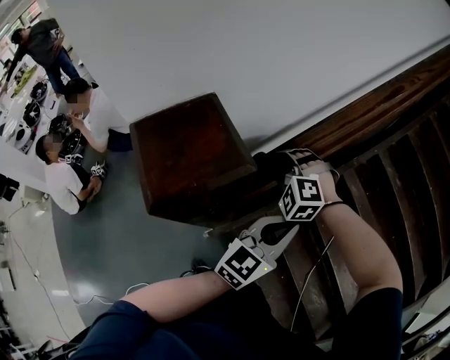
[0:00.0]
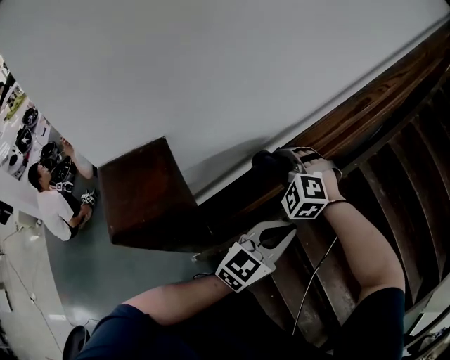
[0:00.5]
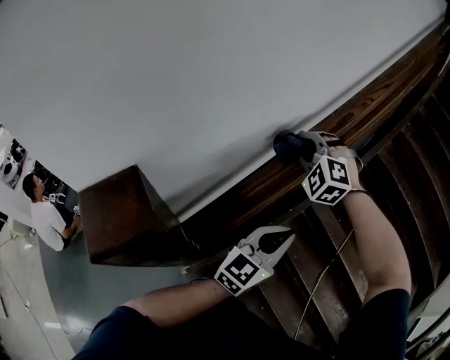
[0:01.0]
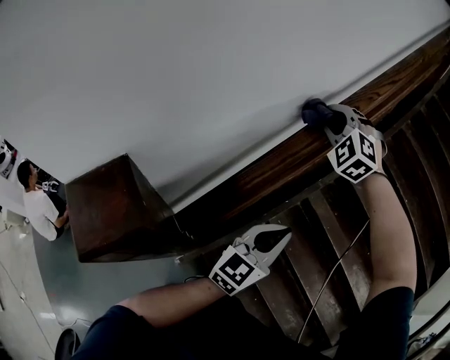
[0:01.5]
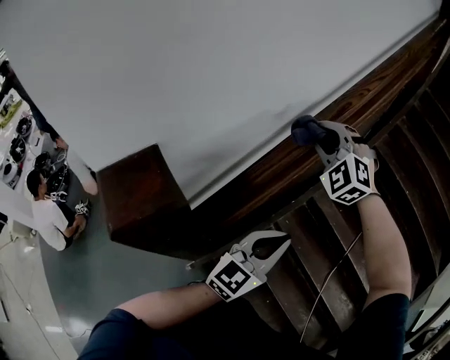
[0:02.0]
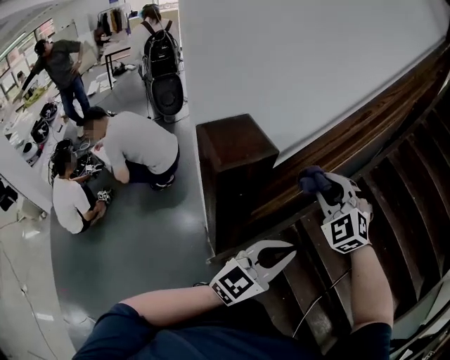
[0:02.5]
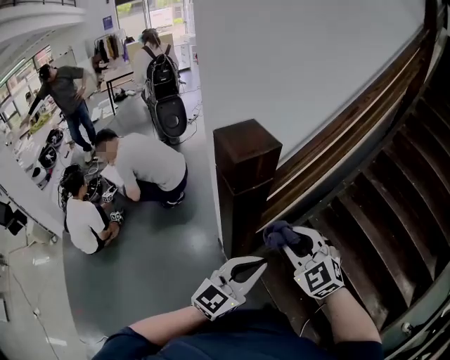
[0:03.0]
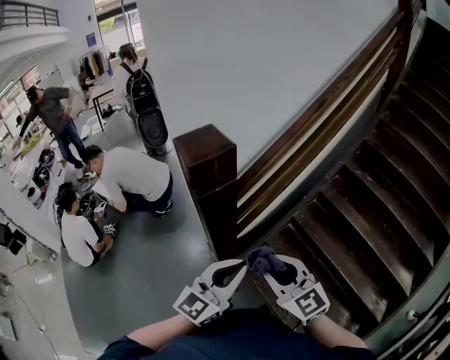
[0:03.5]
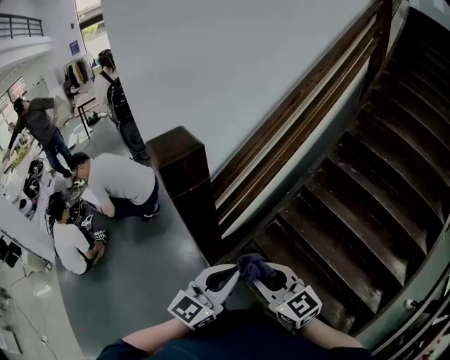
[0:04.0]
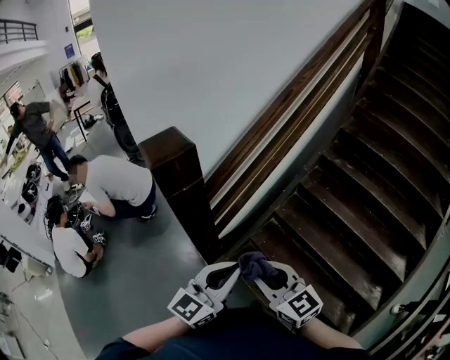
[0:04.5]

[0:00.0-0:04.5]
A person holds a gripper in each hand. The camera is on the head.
0:00.0 to 0:02.0: The right gripper shifts about 30 cm upward, to the right and forward, and turns by roughly 30 degrees. The left gripper shifts roughly 10 cm to the right and upward, and moves about 10 cm forward and comes back.
0:02.0 to 0:04.5: The left gripper is displaced backward by about 35 cm, while the right gripper moves backward, some 60 cm, and rotates around the line of its fingers by roughly 70 degrees, clockwise from behind.

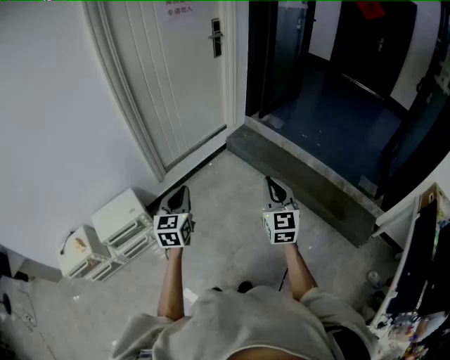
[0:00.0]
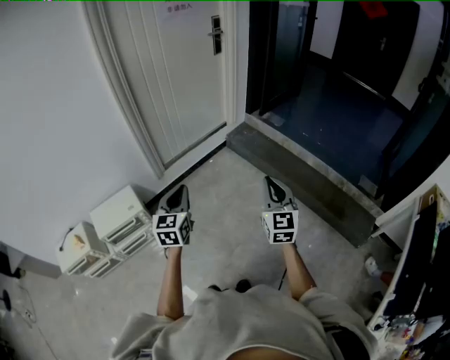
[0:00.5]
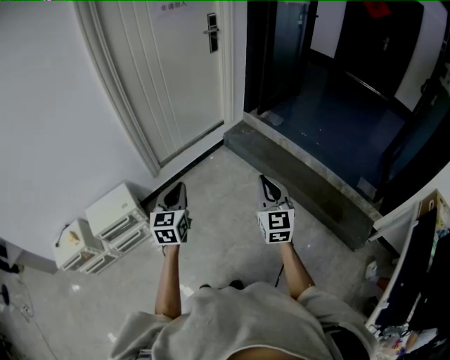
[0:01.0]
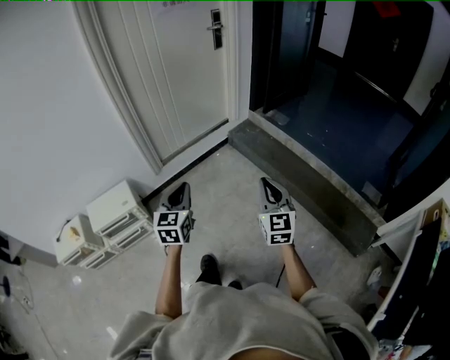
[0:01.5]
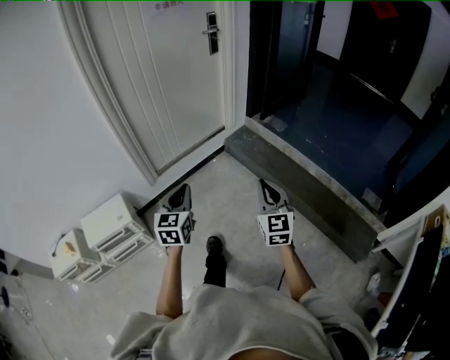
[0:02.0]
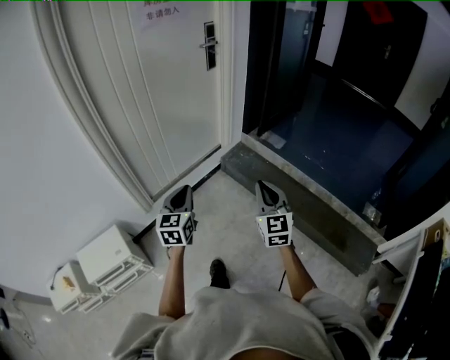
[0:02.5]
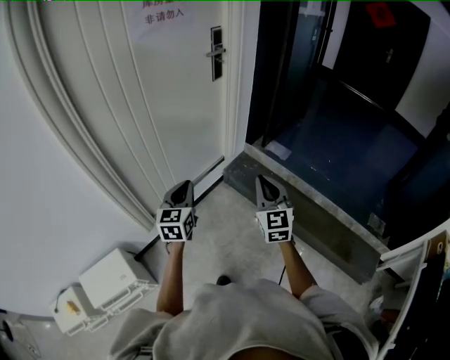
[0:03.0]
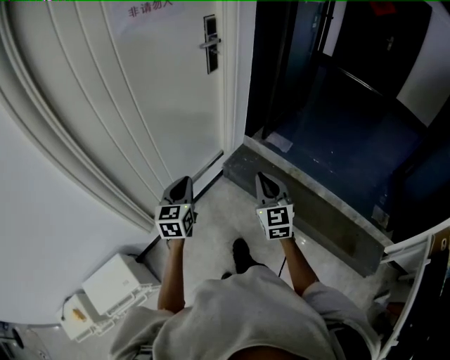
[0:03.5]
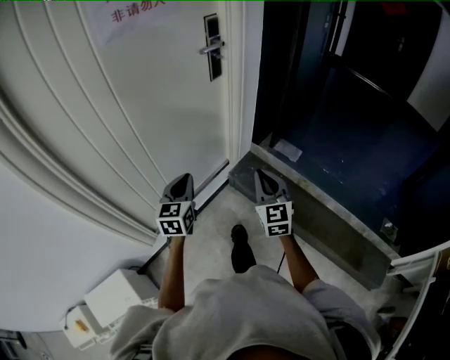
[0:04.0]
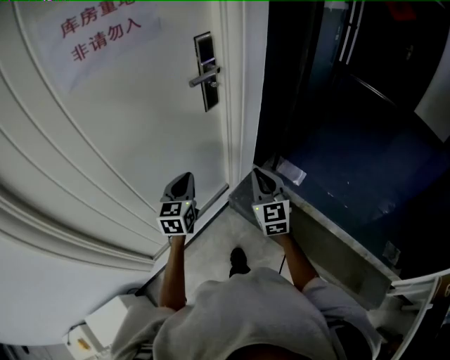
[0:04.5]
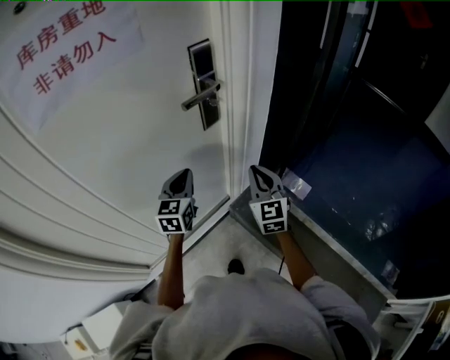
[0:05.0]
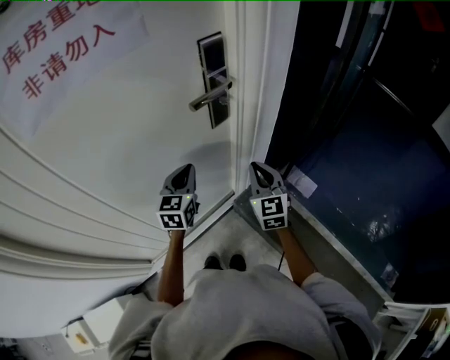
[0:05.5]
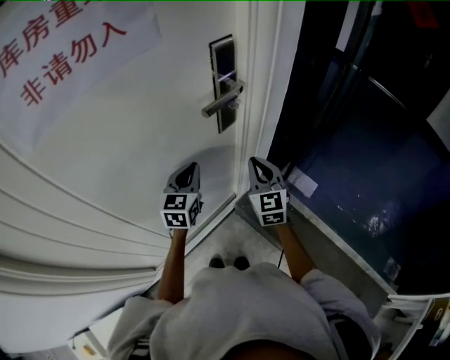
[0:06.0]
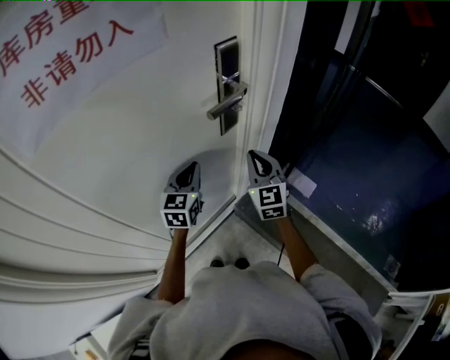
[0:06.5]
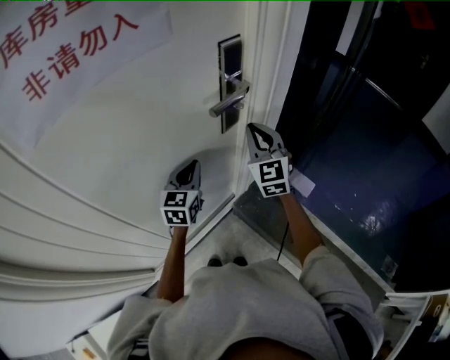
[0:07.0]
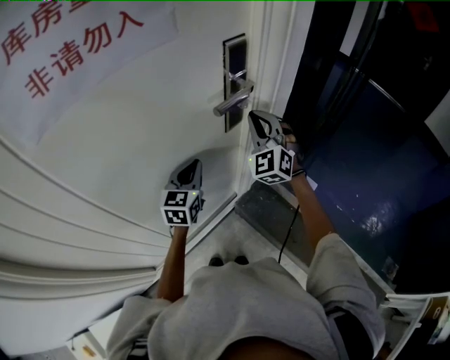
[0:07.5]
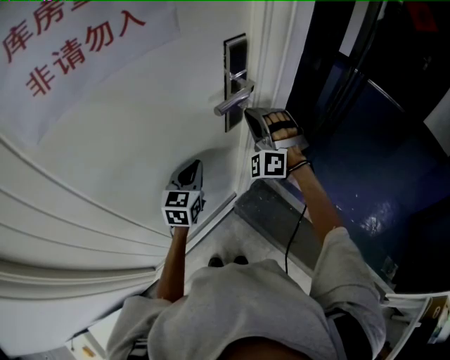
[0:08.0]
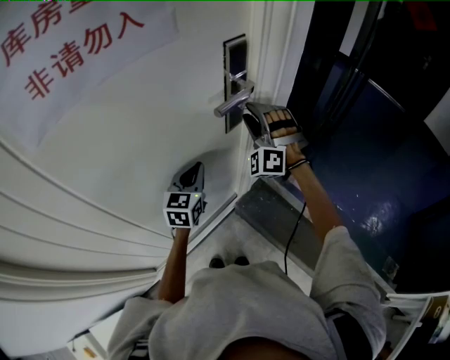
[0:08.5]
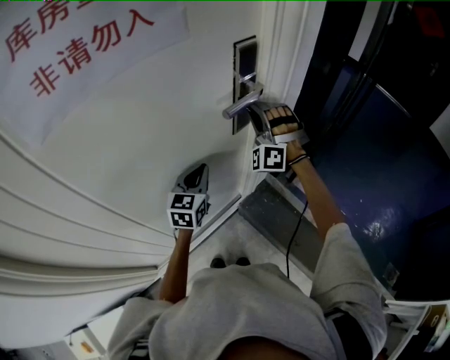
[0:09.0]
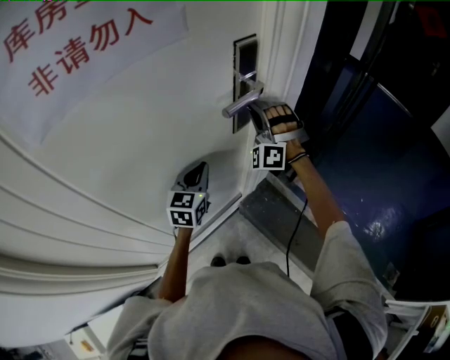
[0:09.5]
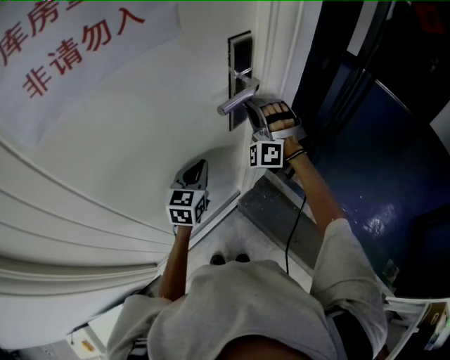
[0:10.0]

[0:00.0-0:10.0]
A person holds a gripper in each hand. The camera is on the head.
0:00.0 to 0:02.0: The grippers both shift forward and to the right by about 15 cm.
0:02.0 to 0:04.0: Both grippers are carried forward, roughly 50 cm.
0:04.0 to 0:06.0: The two grippers go about 35 cm forward.
0:06.0 to 0:08.0: The right gripper moves forward and upward, roughly 15 cm, and rotates around the line of its fingers by roughly 70 degrees, counterclockwise from behind.
0:08.0 to 0:10.0: The right gripper opens, then closes once more.

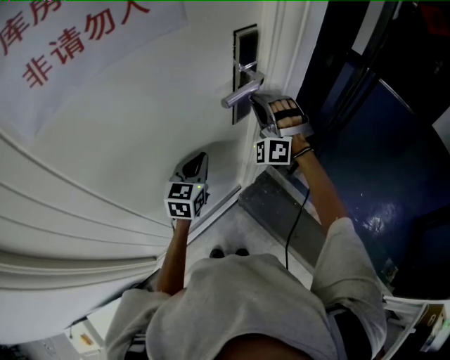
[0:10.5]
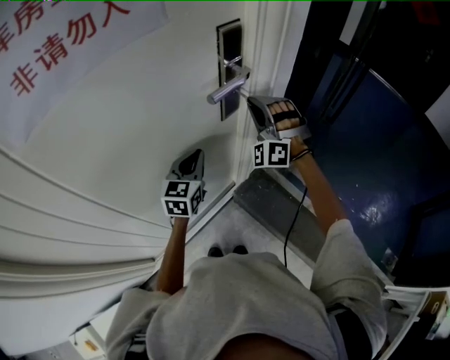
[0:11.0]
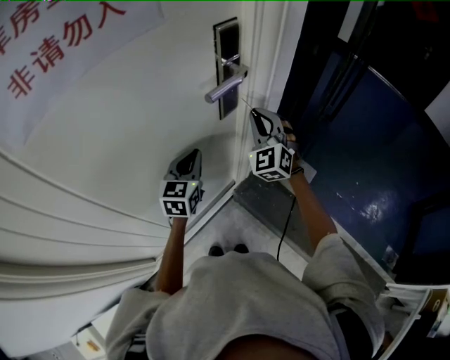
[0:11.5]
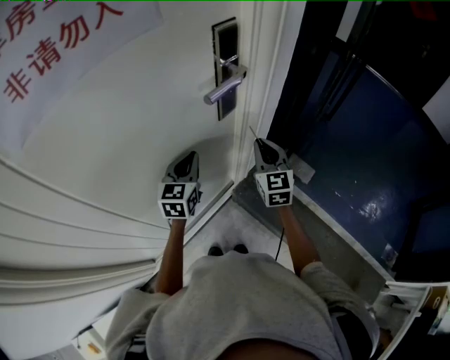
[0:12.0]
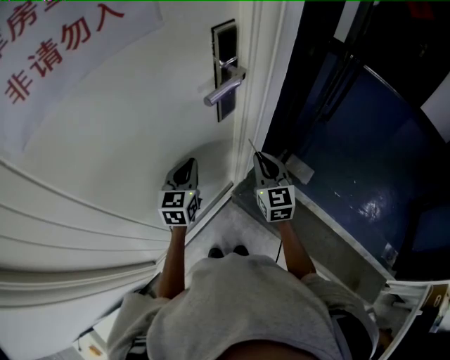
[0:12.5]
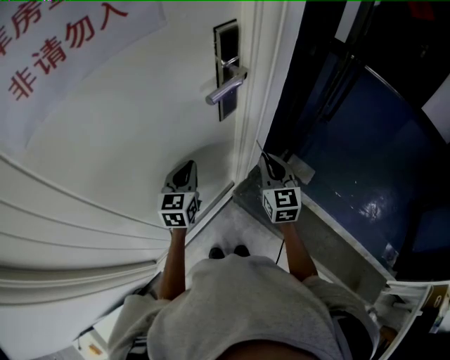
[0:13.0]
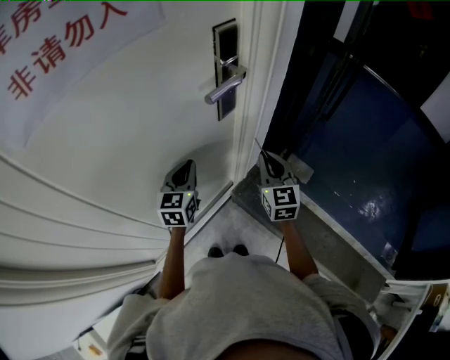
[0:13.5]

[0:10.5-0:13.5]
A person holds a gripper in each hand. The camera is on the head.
0:10.5 to 0:12.0: The right gripper is displaced downward, backward and to the right by some 15 cm, and rolls clockwise, seen from behind, by roughly 80 degrees.
0:12.0 to 0:13.5: The grippers move only a little.

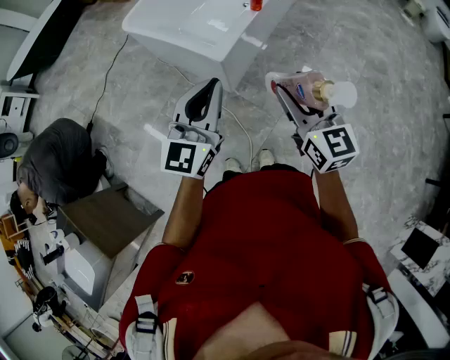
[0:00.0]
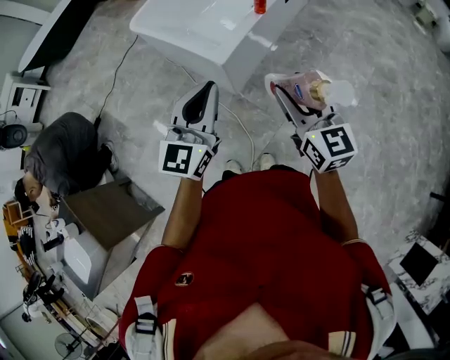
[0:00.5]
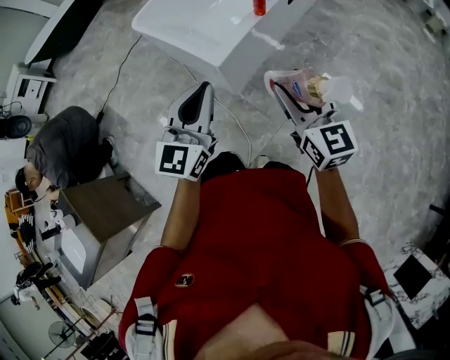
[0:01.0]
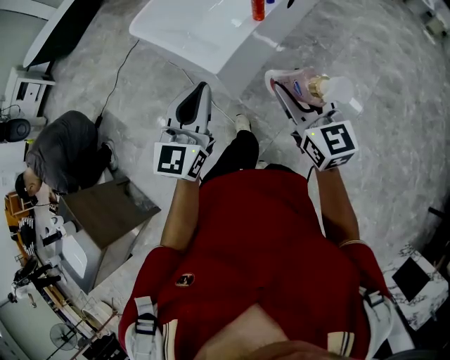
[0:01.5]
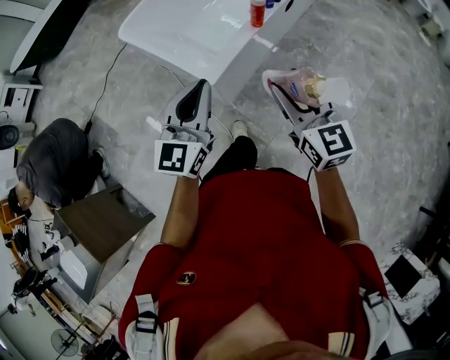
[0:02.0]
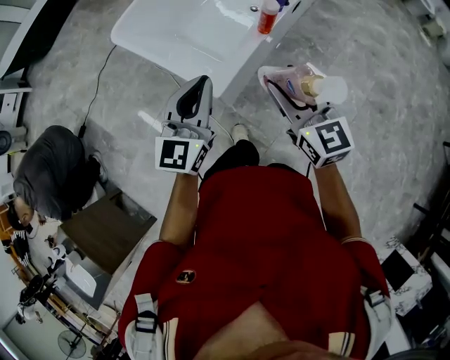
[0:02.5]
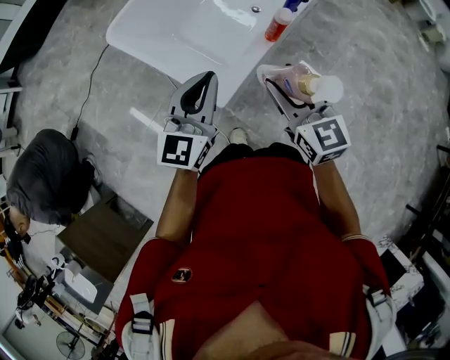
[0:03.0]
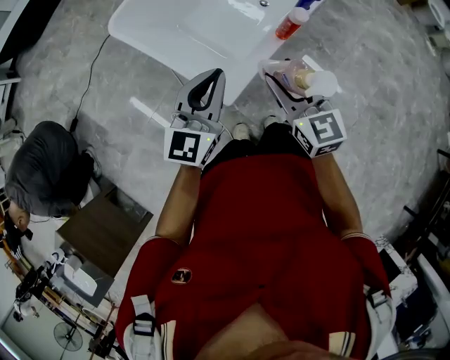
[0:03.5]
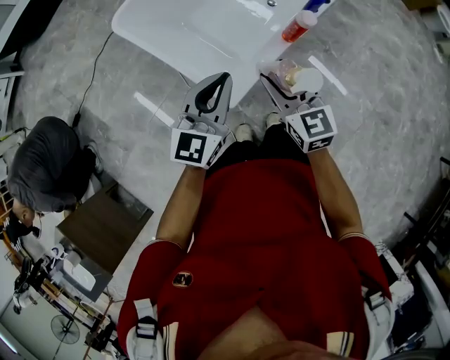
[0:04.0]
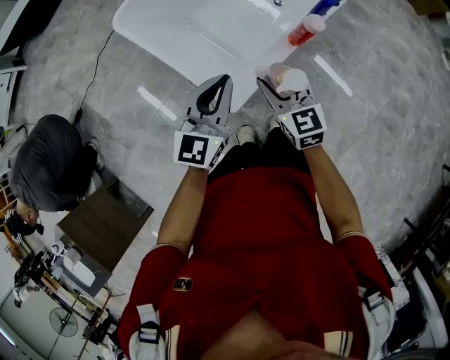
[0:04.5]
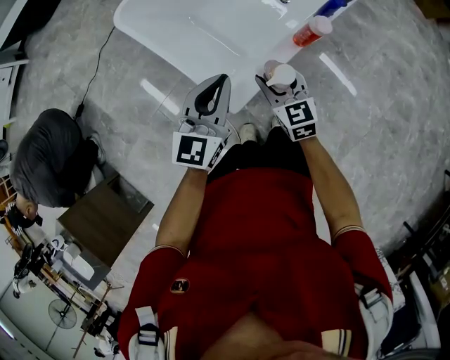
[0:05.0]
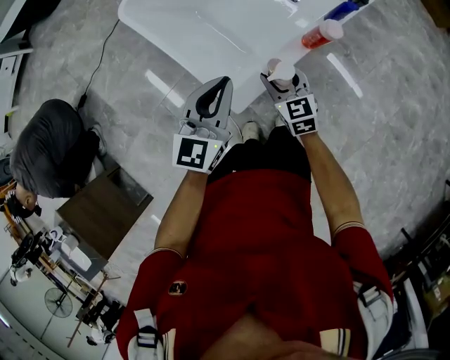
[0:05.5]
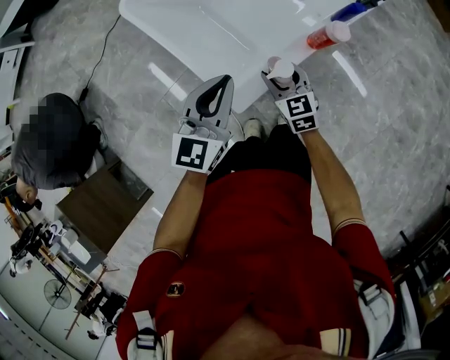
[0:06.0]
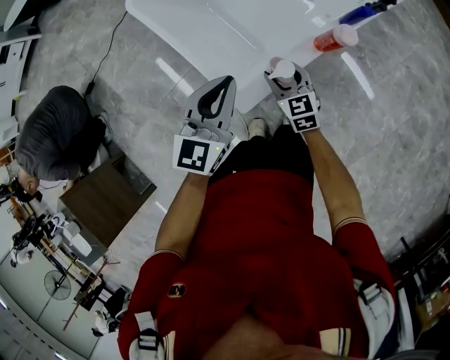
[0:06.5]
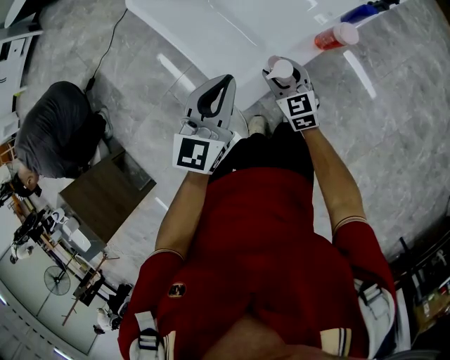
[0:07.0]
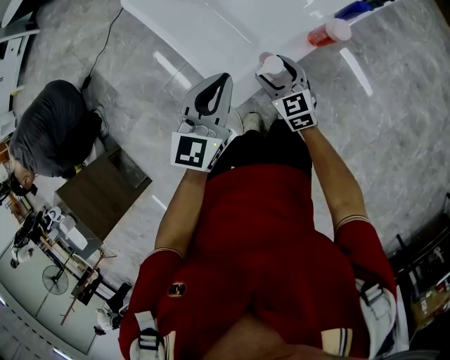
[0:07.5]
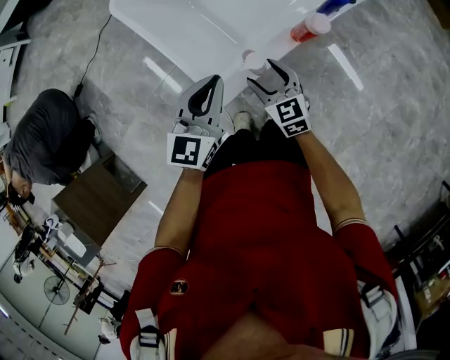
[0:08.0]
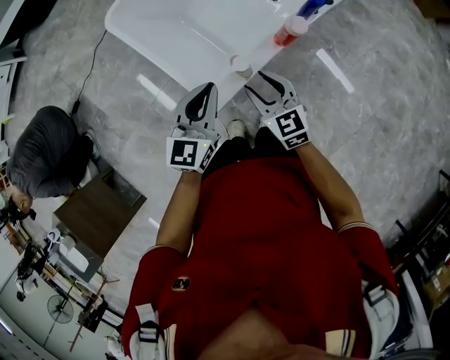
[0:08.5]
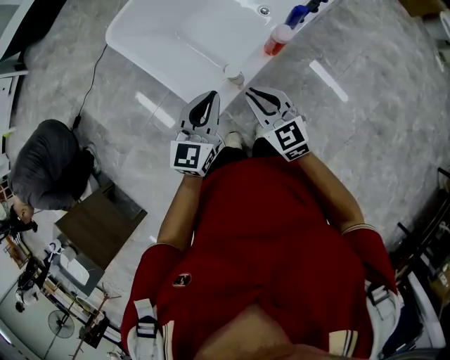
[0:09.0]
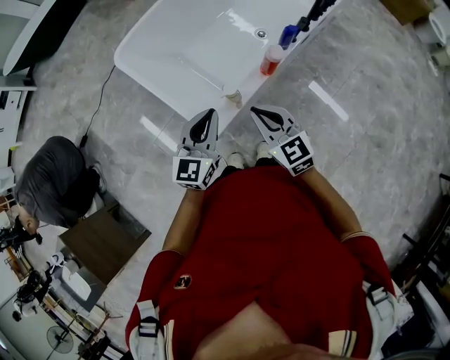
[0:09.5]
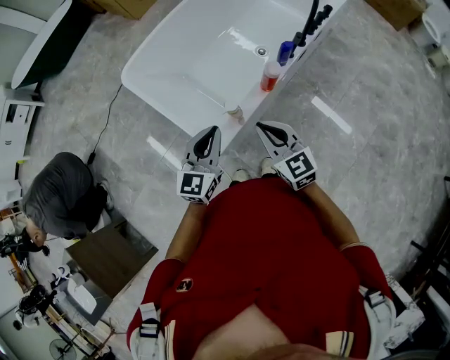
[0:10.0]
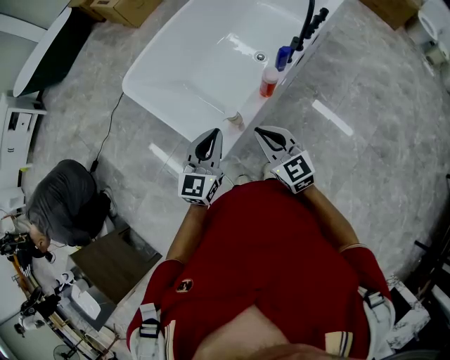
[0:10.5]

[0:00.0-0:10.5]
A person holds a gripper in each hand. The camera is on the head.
0:00.0 to 0:02.0: The right gripper is displaced forward and to the right by roughly 15 cm, while the left gripper heads forward, covering approximately 15 cm.
0:02.0 to 0:04.0: The left gripper goes about 25 cm forward and downward, while the right gripper shifts roughly 30 cm forward, downward and to the left.
0:04.0 to 0:06.5: The right gripper is displaced downward by about 20 cm. Meanwhile the left gripper goes some 10 cm downward and forward.
0:06.5 to 0:08.5: The right gripper moves upward and backward, approximately 15 cm.
0:08.5 to 0:10.5: The right gripper moves upward, some 10 cm, and closes. Meanwhile the left gripper ends up about 5 cm from where it was.
